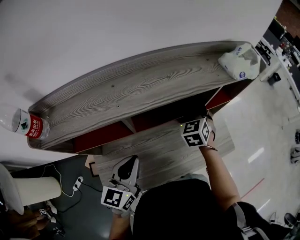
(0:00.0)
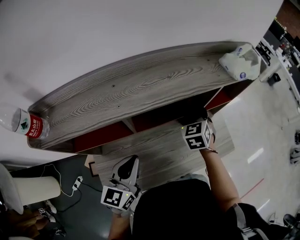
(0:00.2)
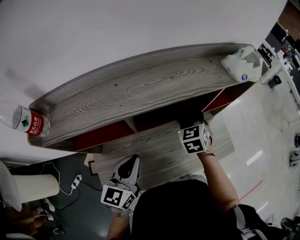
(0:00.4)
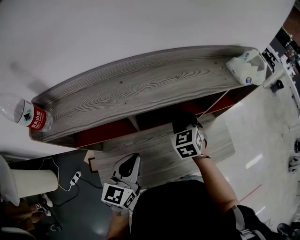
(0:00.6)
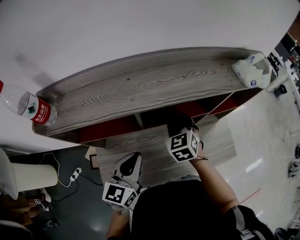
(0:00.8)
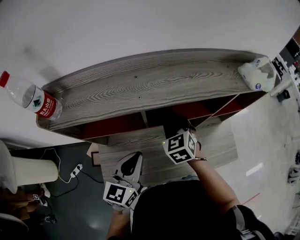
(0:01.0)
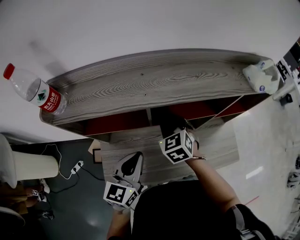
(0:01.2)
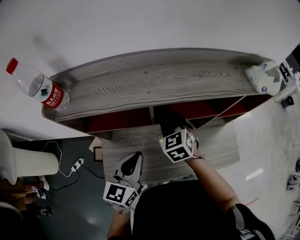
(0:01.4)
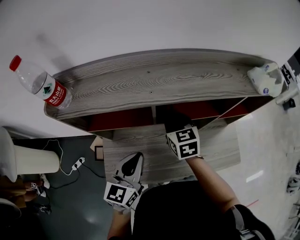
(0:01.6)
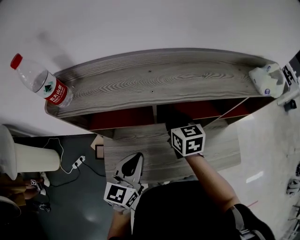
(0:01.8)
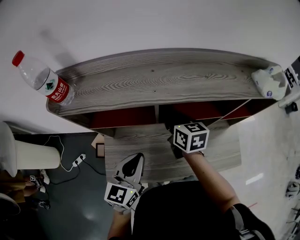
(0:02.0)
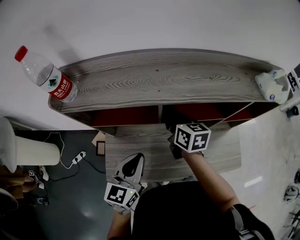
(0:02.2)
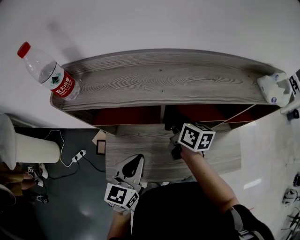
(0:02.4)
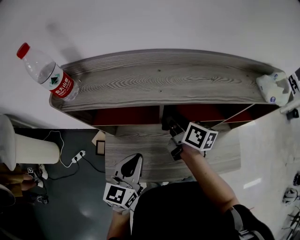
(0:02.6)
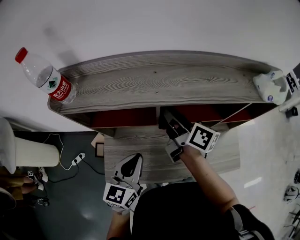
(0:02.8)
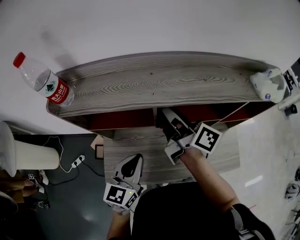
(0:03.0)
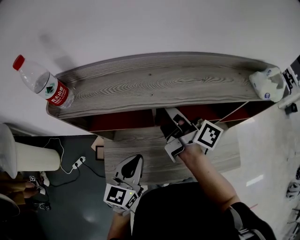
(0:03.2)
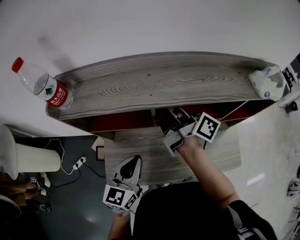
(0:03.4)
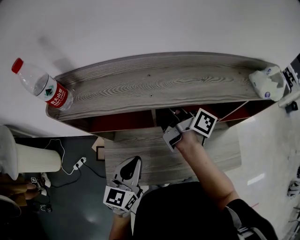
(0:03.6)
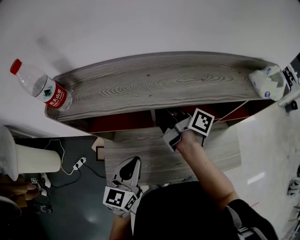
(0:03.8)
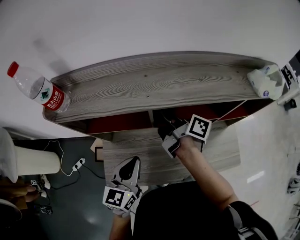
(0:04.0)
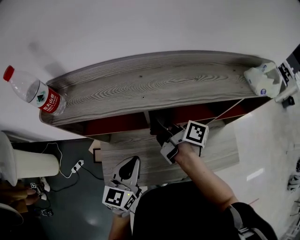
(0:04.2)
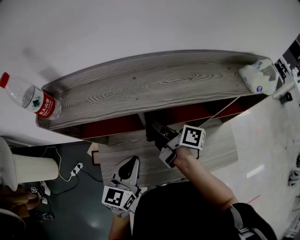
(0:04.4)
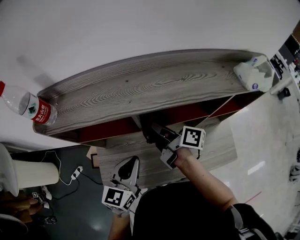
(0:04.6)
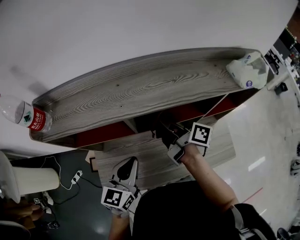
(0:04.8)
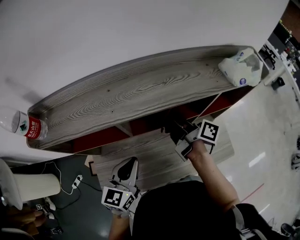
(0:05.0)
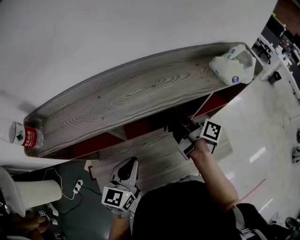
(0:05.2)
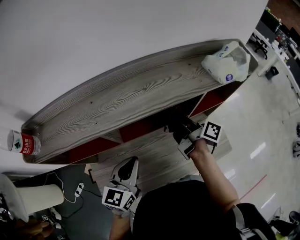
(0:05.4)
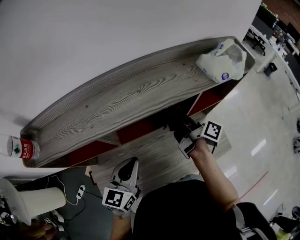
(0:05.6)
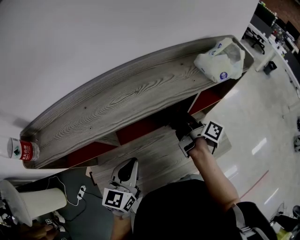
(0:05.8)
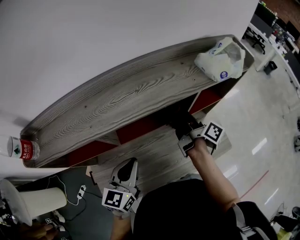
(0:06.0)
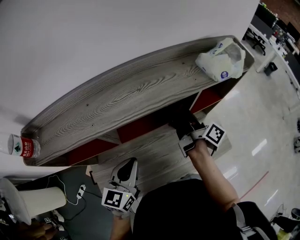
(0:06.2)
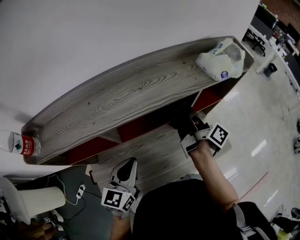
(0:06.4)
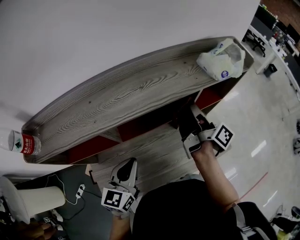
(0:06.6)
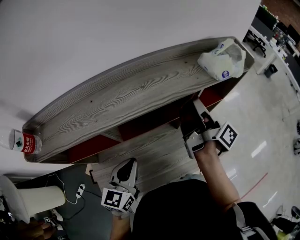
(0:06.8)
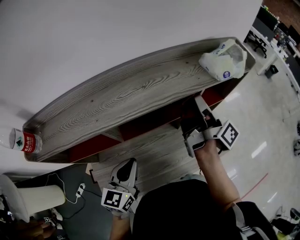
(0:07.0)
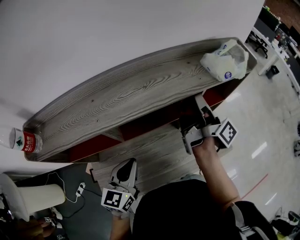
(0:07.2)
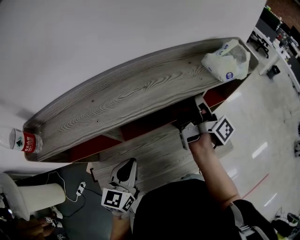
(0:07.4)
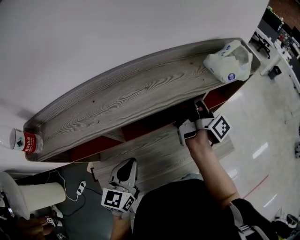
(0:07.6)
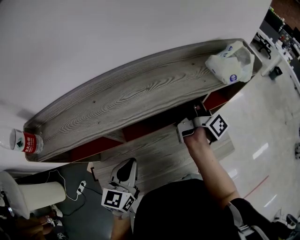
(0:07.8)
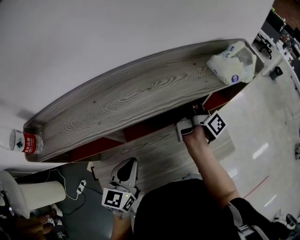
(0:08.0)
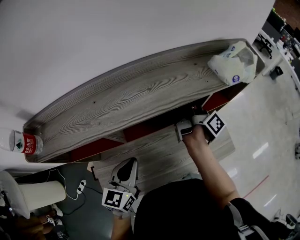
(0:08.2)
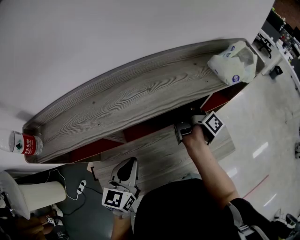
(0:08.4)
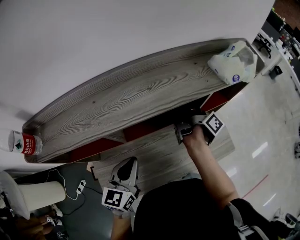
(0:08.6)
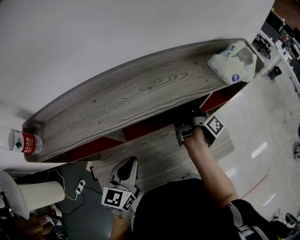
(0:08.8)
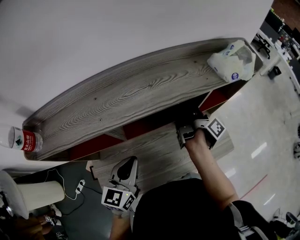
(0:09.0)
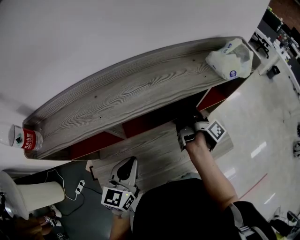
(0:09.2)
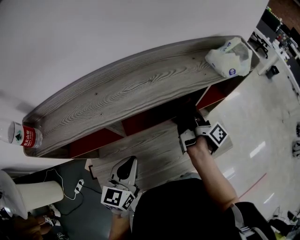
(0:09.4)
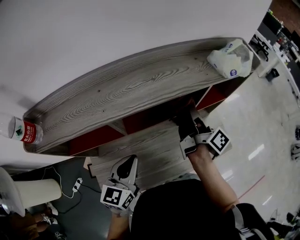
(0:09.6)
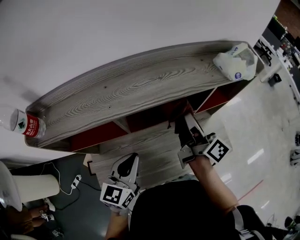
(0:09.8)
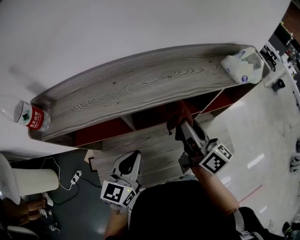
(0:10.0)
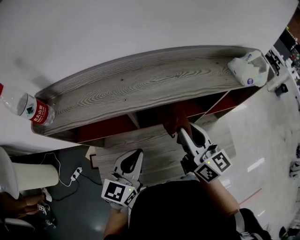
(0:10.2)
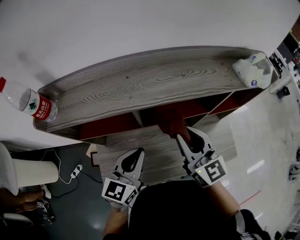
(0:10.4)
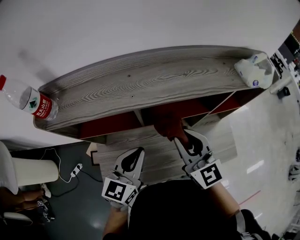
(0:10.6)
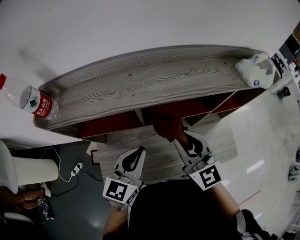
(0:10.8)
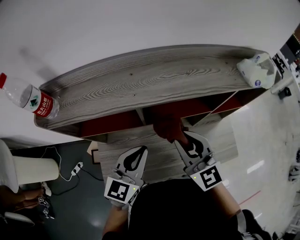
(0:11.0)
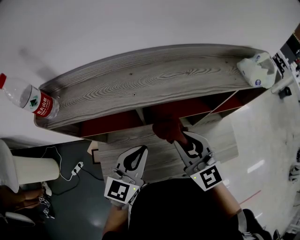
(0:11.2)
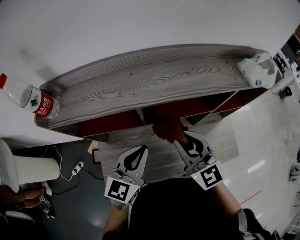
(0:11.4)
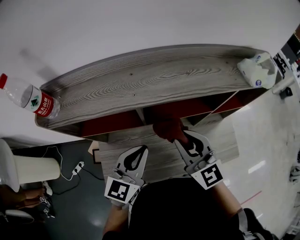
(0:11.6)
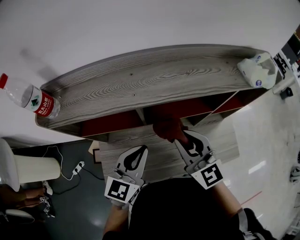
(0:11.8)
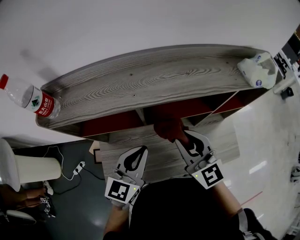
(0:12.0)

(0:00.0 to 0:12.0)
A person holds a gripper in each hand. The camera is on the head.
0:00.0 - 0:01.6: The right gripper moves to the left, about 20 cm, and rotates roughly 40 degrees.
0:01.6 - 0:03.0: The right gripper moves upward, roughly 10 cm, and angles its fingers upward, by about 40 degrees.
0:03.0 - 0:04.4: The right gripper travels downward by approximately 10 cm.
0:04.4 - 0:06.0: The right gripper shifts about 25 cm to the right, and swivels about 40 degrees, while the left gripper goes about 10 cm to the right.
0:06.0 - 0:07.6: The right gripper heads upward, covering some 10 cm, and turns by approximately 20 degrees.
0:07.6 - 0:09.0: The right gripper is displaced downward by about 10 cm, and swivels about 20 degrees.
0:09.0 - 0:10.4: The right gripper heads backward, to the left and upward, covering about 25 cm, and rotates around the line of its fingers by some 90 degrees, counterclockwise from behind.
0:10.4 - 0:12.0: The grippers make only small movements.

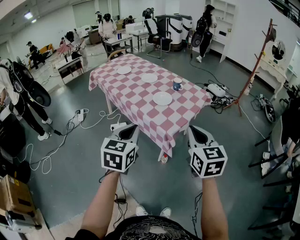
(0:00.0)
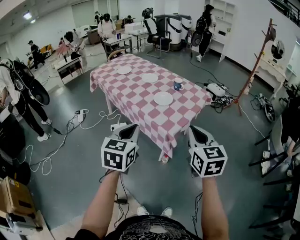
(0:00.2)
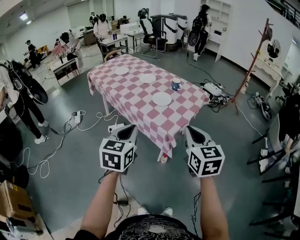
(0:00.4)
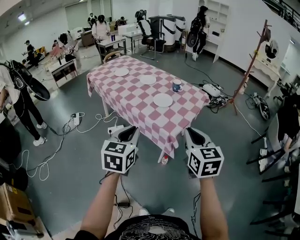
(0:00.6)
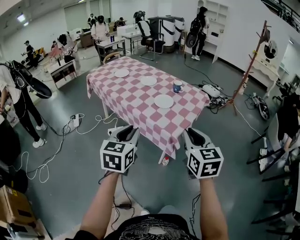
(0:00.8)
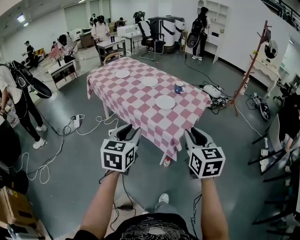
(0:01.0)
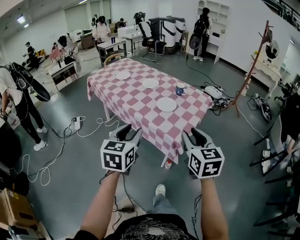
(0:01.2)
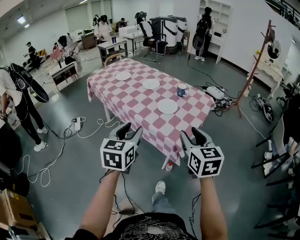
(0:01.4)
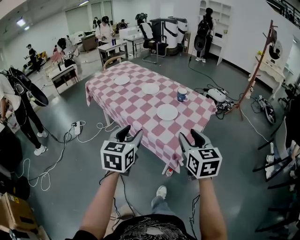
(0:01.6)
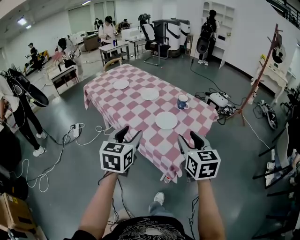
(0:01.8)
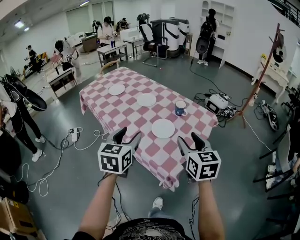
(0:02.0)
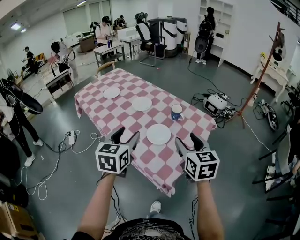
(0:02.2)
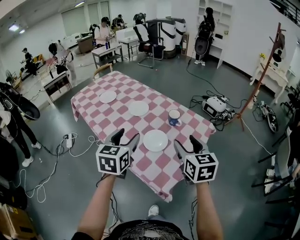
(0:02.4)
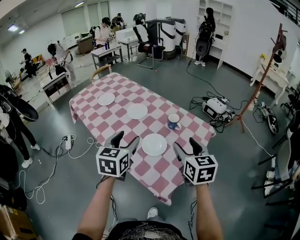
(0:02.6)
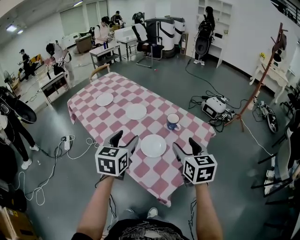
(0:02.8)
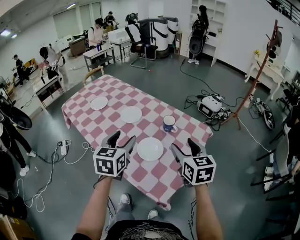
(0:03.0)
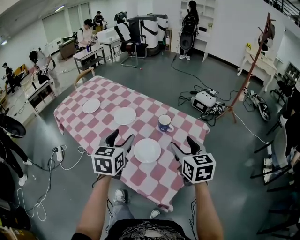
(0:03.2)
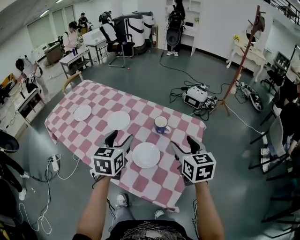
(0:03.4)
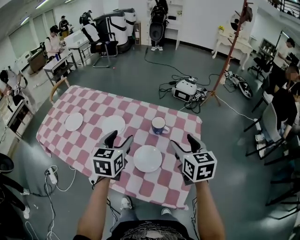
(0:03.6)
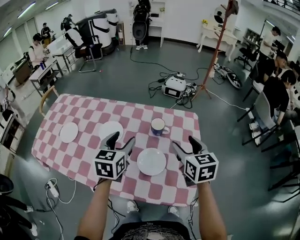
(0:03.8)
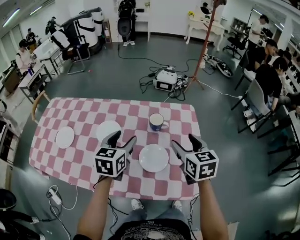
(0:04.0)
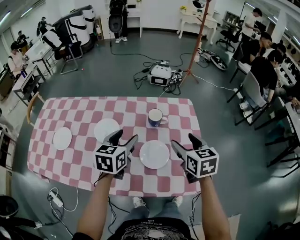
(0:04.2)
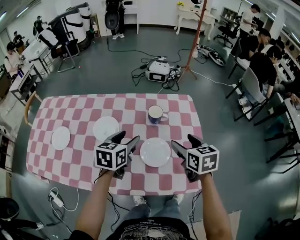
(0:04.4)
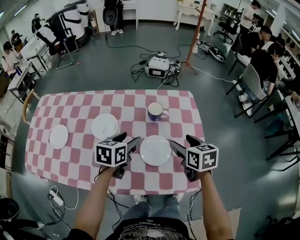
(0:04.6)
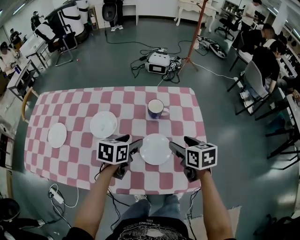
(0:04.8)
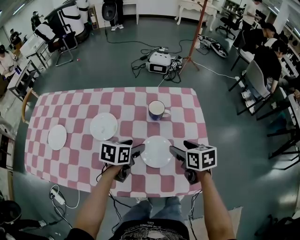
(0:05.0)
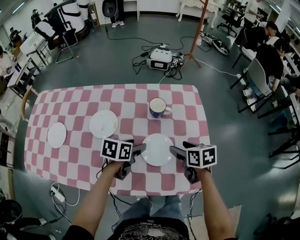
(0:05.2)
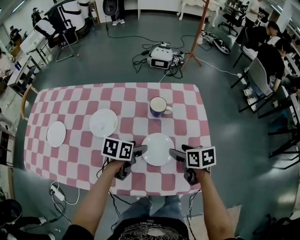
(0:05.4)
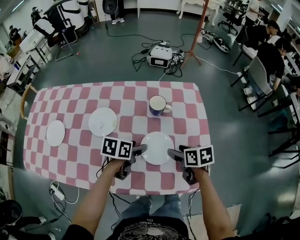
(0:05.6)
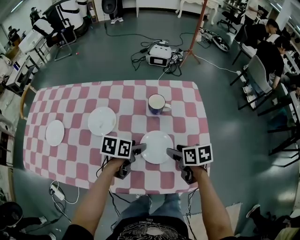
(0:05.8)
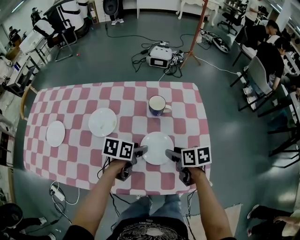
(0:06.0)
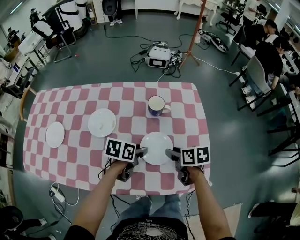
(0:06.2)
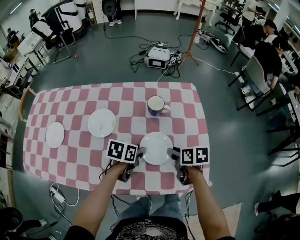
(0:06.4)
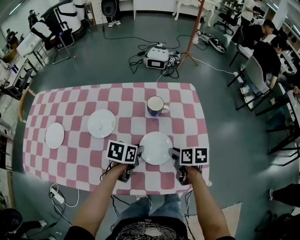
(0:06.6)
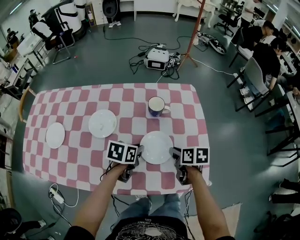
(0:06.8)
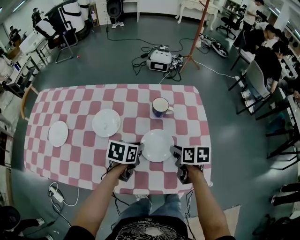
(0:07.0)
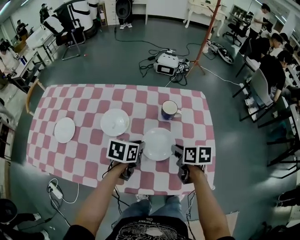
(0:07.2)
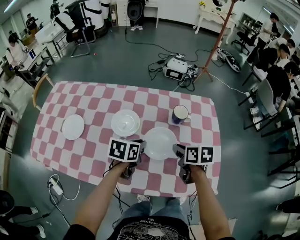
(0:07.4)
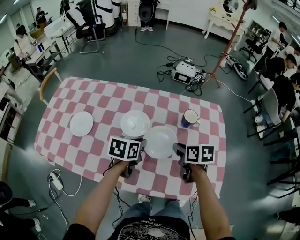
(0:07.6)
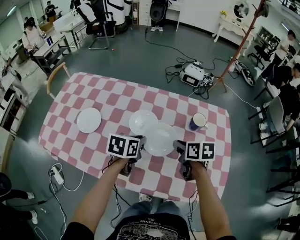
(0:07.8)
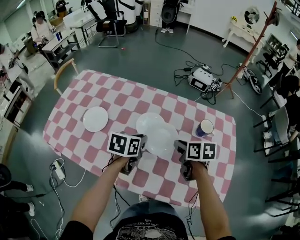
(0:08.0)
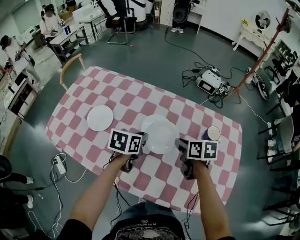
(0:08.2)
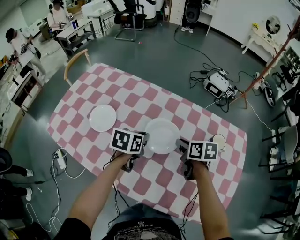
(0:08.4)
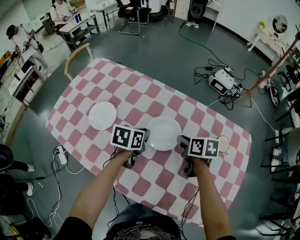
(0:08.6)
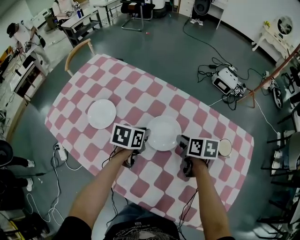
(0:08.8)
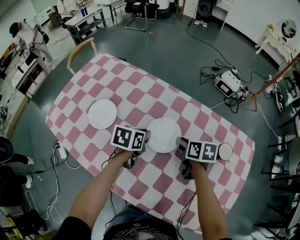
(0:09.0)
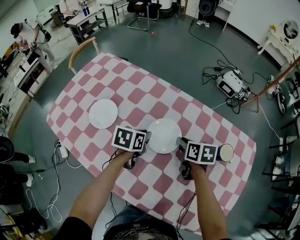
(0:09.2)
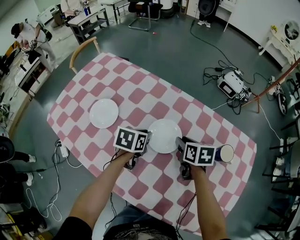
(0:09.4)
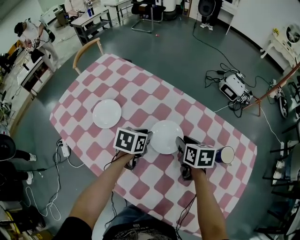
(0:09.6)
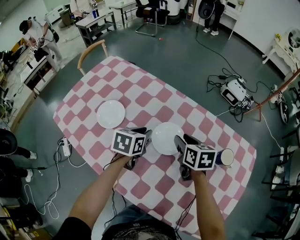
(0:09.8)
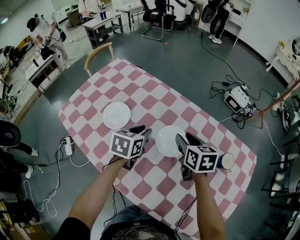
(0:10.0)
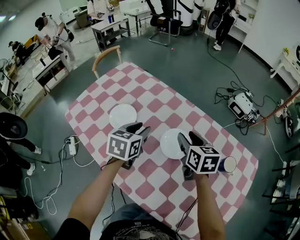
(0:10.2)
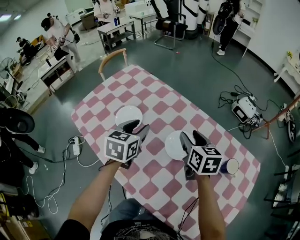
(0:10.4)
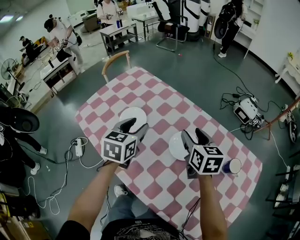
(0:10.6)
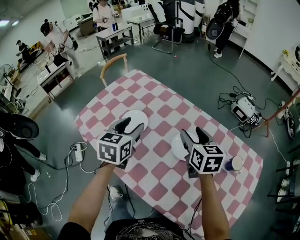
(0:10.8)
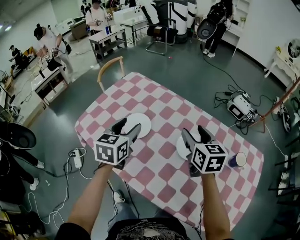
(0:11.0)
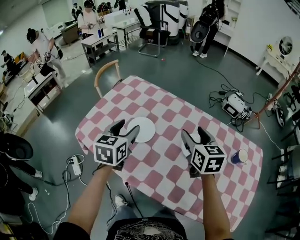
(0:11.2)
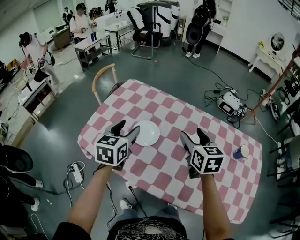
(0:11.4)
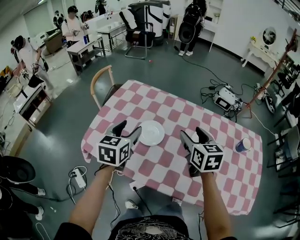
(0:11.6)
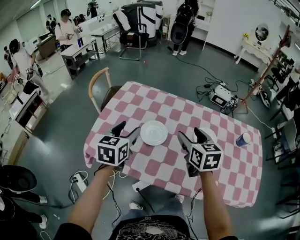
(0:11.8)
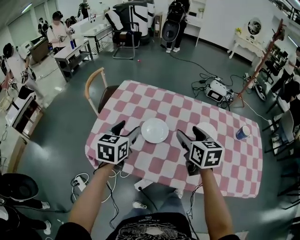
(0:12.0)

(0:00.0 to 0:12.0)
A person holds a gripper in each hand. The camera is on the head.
0:00.0 - 0:01.6: Both grippers travel together forward and to the left, about 15 cm. The left gripper opens up, while the right gripper opens.
0:01.6 - 0:03.0: The grippers both shift forward by roughly 30 cm.
0:03.0 - 0:04.4: The right gripper shifts roughly 10 cm downward, and swivels approximately 40 degrees, while the left gripper changes place by approximately 20 cm, and rotates roughly 50 degrees.
0:04.4 - 0:06.0: The two grippers go about 15 cm downward. The left gripper changes its angle by roughly 30 degrees, while the right gripper changes its angle by roughly 30 degrees, and closes up.
0:06.0 - 0:07.6: Both grippers travel together to the left and upward, some 15 cm. The right gripper closes its fingers. The left gripper closes.
0:07.6 - 0:09.0: The left gripper moves to the left, forward and downward, roughly 15 cm, while the right gripper heads forward and to the left, covering some 20 cm.
0:09.0 - 0:10.4: The grippers both shift upward and to the left by about 15 cm. The right gripper changes its angle by roughly 30 degrees, and opens its fingers, while the left gripper changes its angle by approximately 30 degrees, and opens its fingers.
0:10.4 - 0:12.0: Both grippers move to the left, approximately 25 cm. The right gripper rotates roughly 20 degrees. The left gripper changes its angle by approximately 20 degrees.
